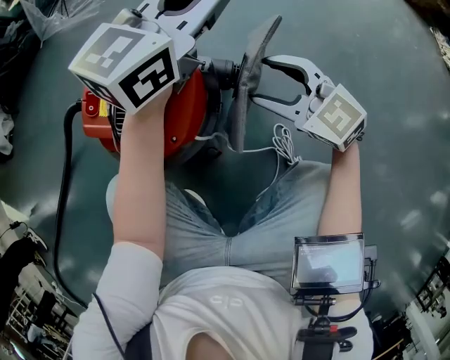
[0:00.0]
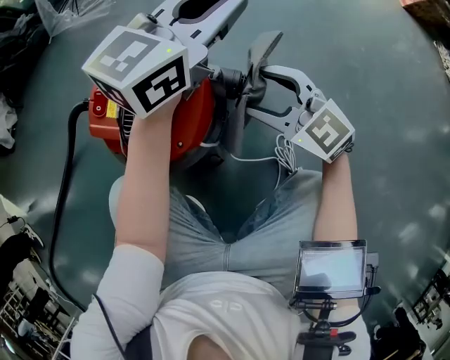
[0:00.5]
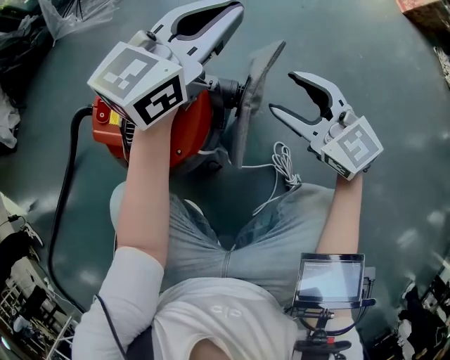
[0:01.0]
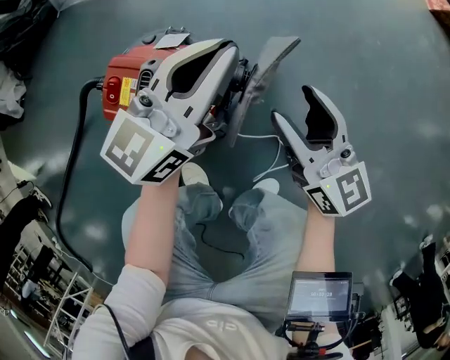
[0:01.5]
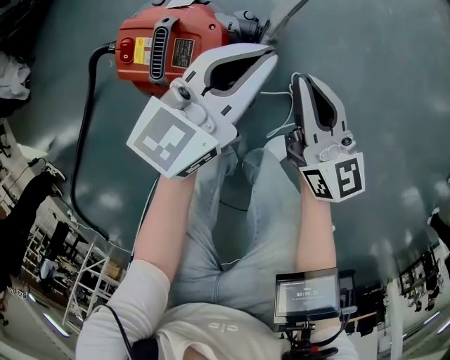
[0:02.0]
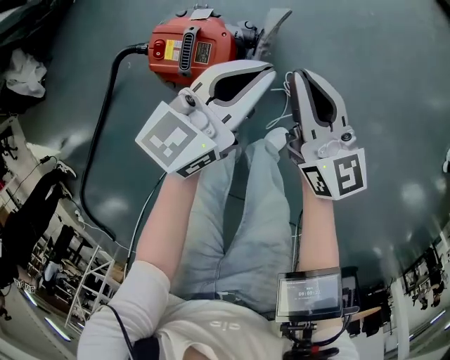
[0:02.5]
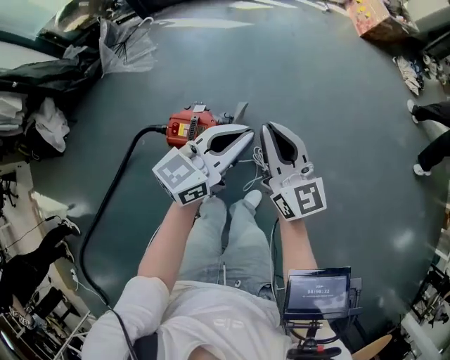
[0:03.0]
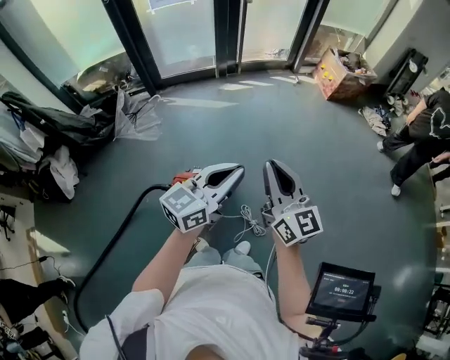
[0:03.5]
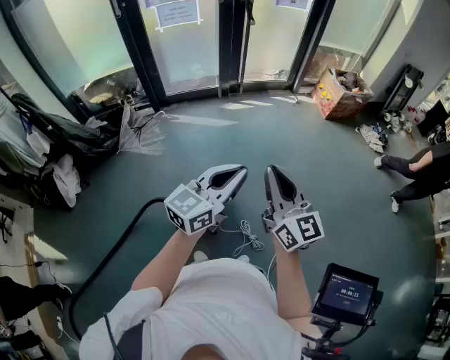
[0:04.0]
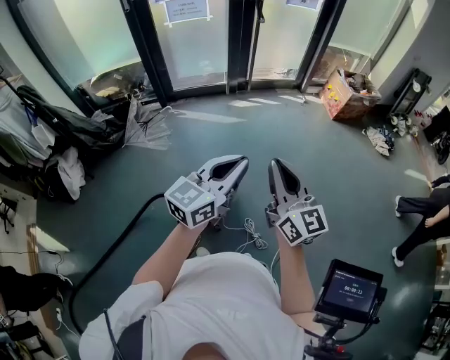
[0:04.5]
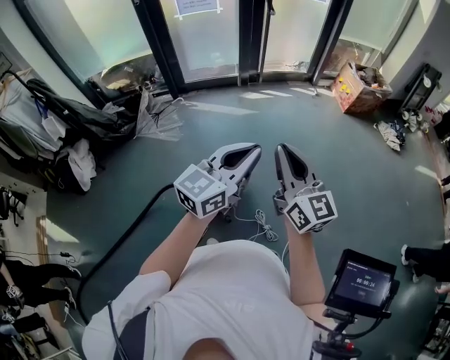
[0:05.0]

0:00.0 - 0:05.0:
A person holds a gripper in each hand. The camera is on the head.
0:00.0 - 0:02.5: The left gripper heads backward and upward, covering about 20 cm, and swivels some 20 degrees; the right gripper heads upward, covering approximately 30 cm, rotates about 50 degrees, and closes up.
0:02.5 - 0:05.0: The grippers both shift upward by roughly 50 cm. The right gripper turns by about 20 degrees, while the left gripper rotates roughly 20 degrees.

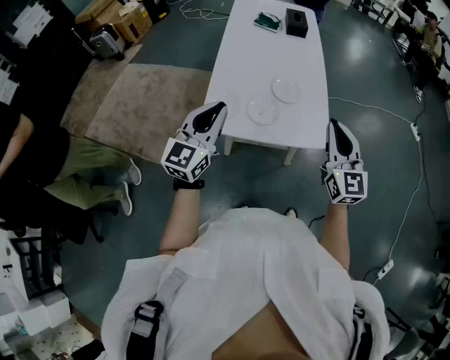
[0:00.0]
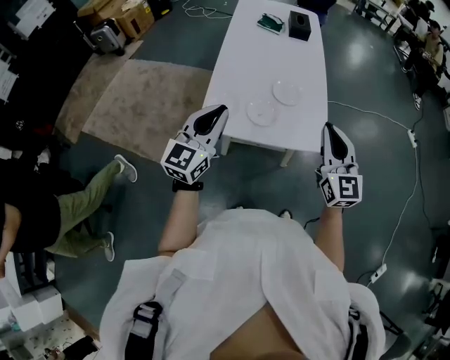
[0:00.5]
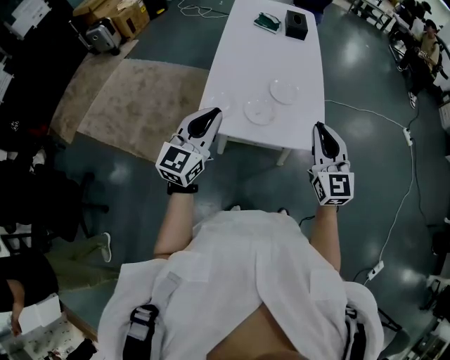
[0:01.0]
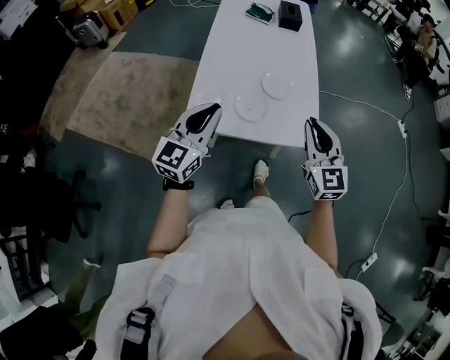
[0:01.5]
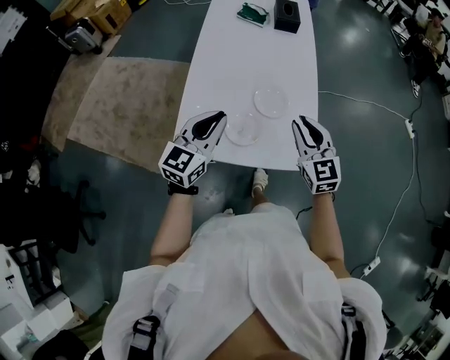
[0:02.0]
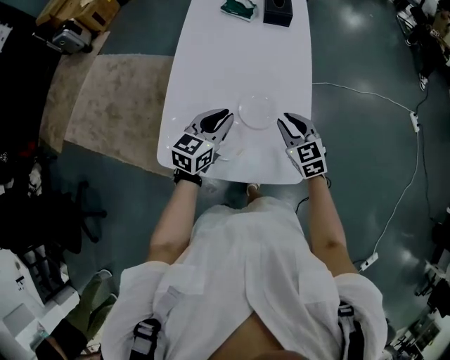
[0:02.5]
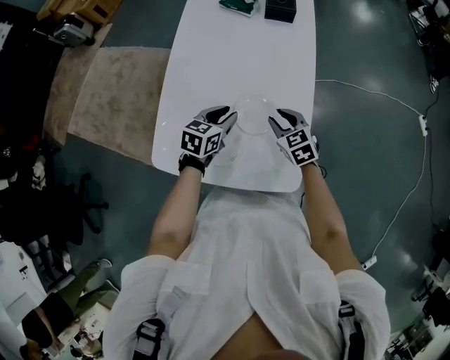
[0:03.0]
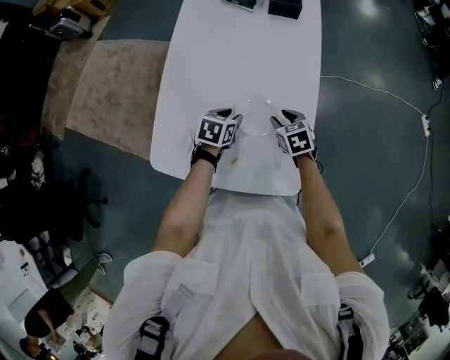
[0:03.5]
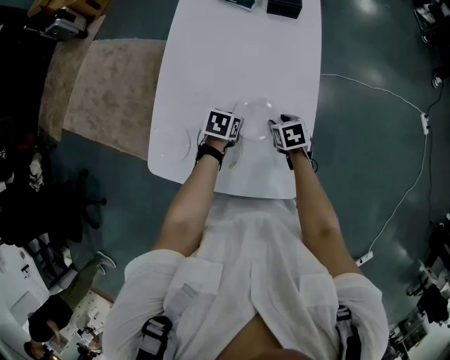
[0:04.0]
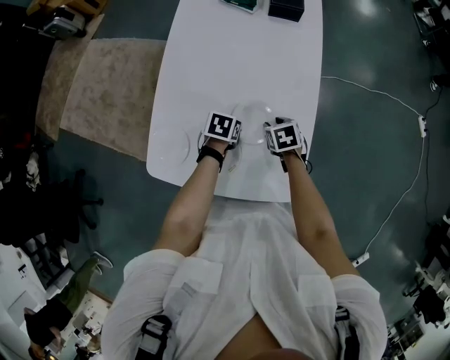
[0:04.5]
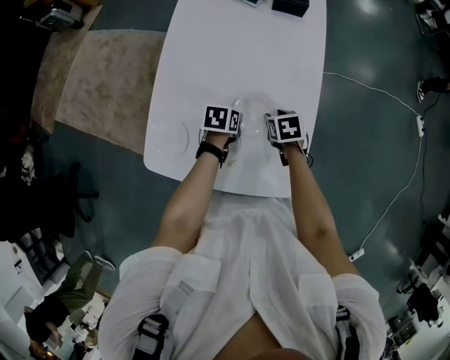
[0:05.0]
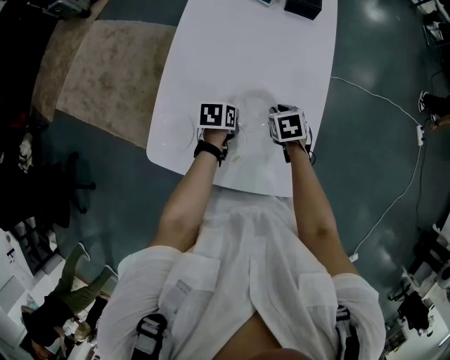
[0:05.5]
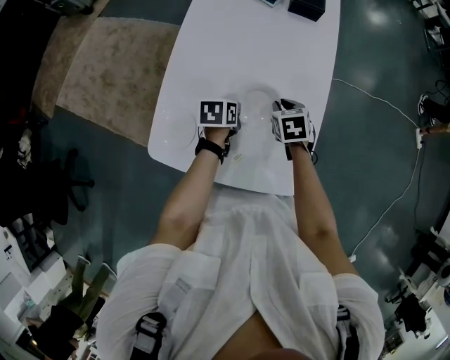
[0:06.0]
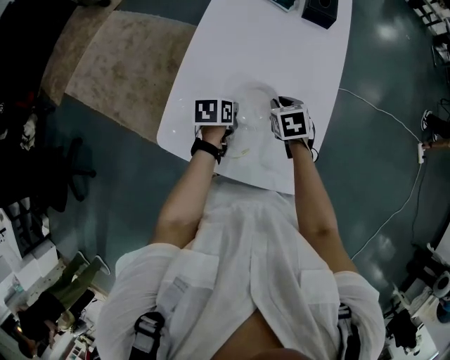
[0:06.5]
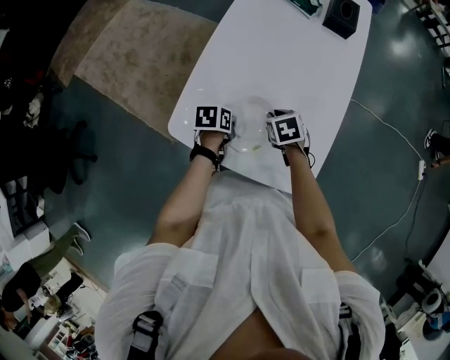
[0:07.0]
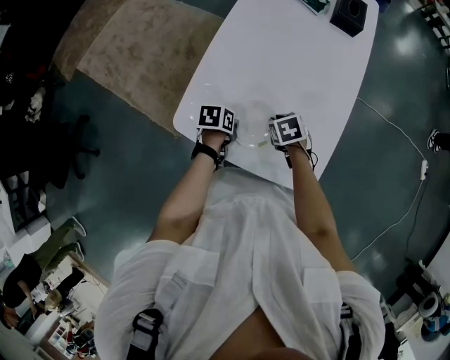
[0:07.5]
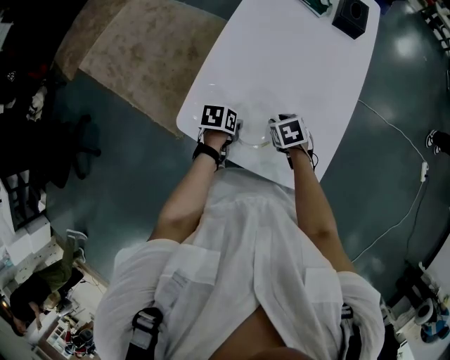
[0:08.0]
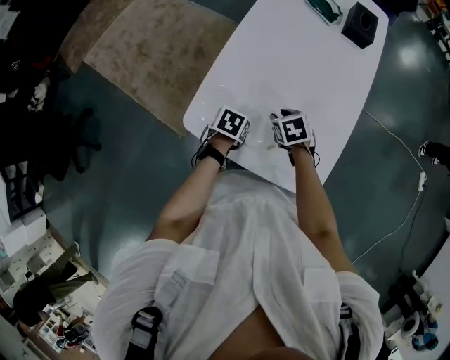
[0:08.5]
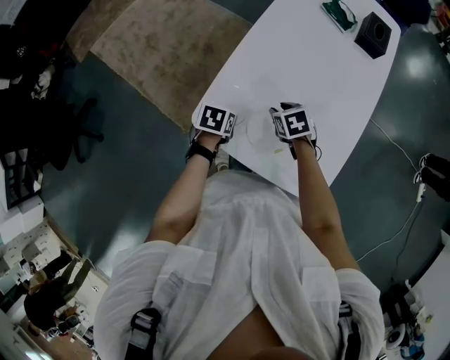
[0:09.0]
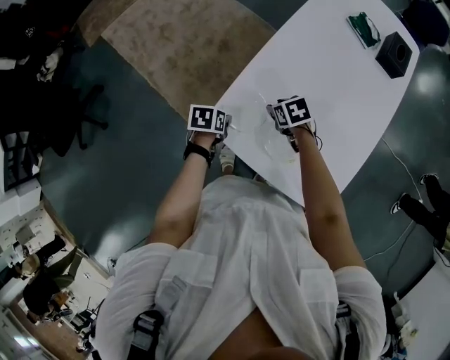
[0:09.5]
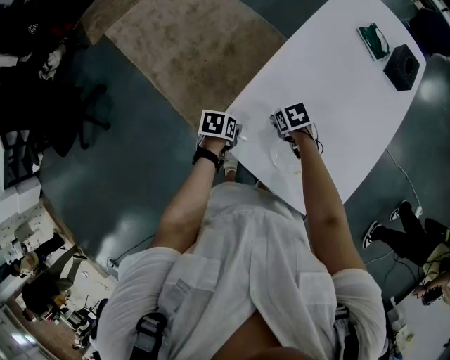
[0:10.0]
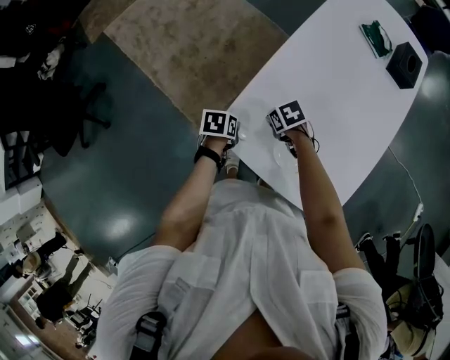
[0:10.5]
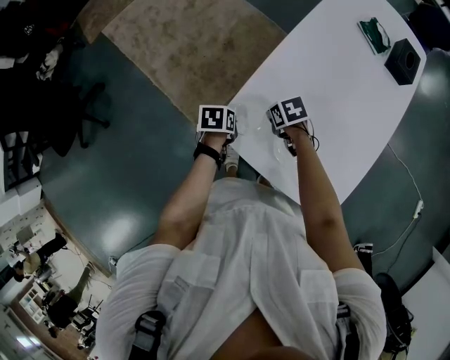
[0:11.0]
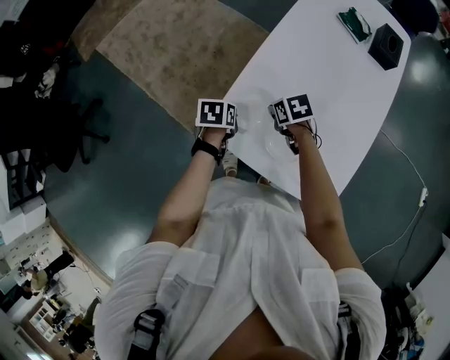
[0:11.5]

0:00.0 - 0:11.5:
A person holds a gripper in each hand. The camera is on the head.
0:00.0 - 0:02.0: Both grippers move forward and downward, roughly 20 cm. The right gripper swivels some 20 degrees.
0:02.0 - 0:04.0: Both grippers travel together downward and forward, some 35 cm. The right gripper points its fingers approximately 50 degrees further downward, and opens; the left gripper angles its fingers downward, by approximately 50 degrees, and opens.
0:04.0 - 0:06.0: The left gripper shifts by about 5 cm, swivels roughly 20 degrees, and closes. The right gripper heads upward and to the left, covering roughly 5 cm, and closes its fingers.
0:06.0 - 0:07.5: The right gripper shifts approximately 15 cm to the left and backward, and swivels about 20 degrees. Meanwhile the left gripper moves backward and to the left, about 15 cm.
0:07.5 - 0:09.5: The right gripper ends up roughly 15 cm from where it was, and opens its fingers. The left gripper moves about 15 cm, and opens its fingers.
0:09.5 - 0:11.5: The left gripper moves roughly 5 cm, and closes up; the right gripper closes its fingers.

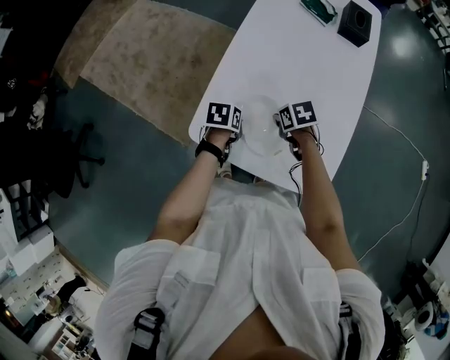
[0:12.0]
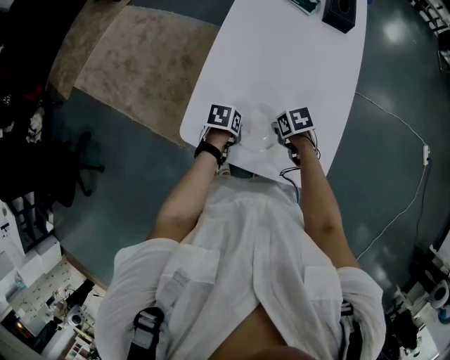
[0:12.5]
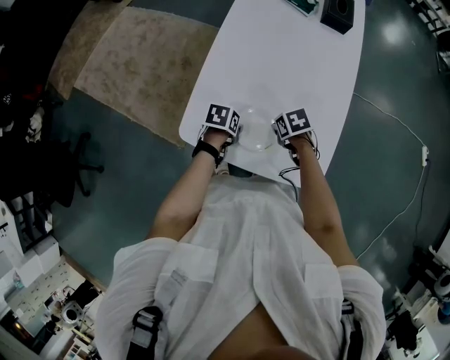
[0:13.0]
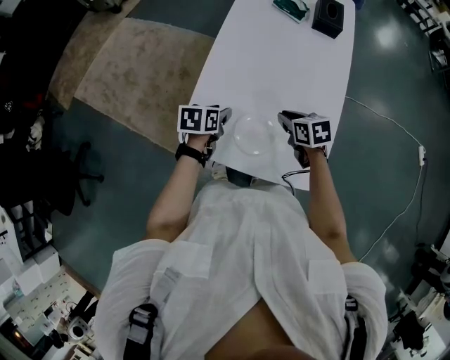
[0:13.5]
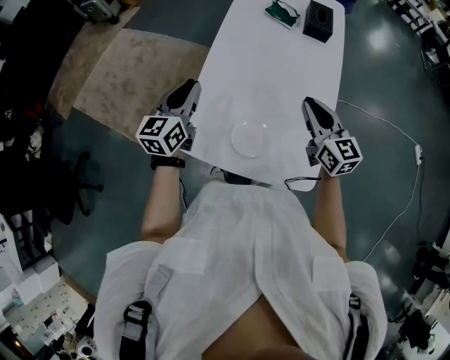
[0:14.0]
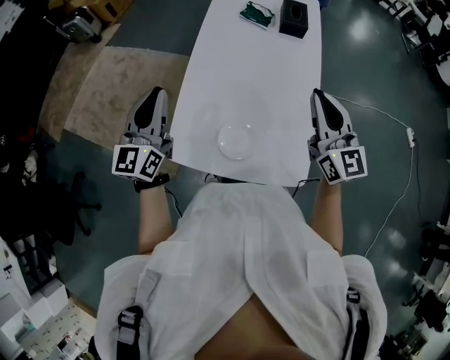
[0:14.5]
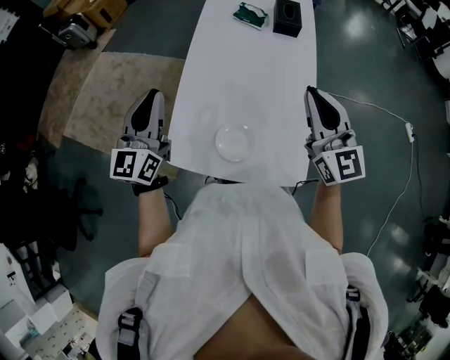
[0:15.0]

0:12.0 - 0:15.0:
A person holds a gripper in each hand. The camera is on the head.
0:12.0 - 0:13.5: The left gripper travels upward by roughly 5 cm, and opens its fingers. The right gripper moves some 10 cm, and turns by roughly 20 degrees.
0:13.5 - 0:15.0: The grippers both shift upward by some 30 cm. The left gripper points its fingers about 50 degrees further upward, and closes its fingers. The right gripper points its fingers roughly 50 degrees further upward.

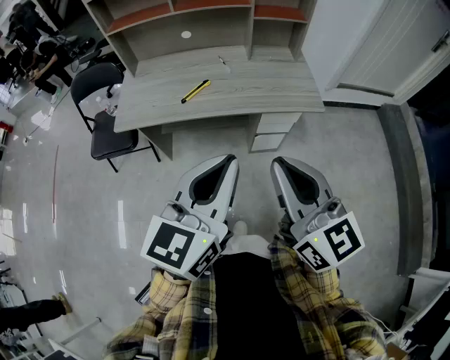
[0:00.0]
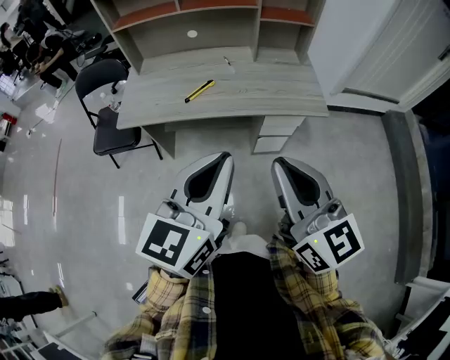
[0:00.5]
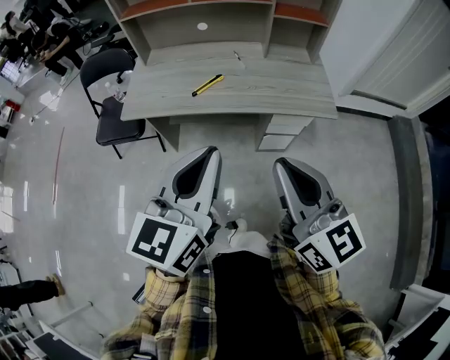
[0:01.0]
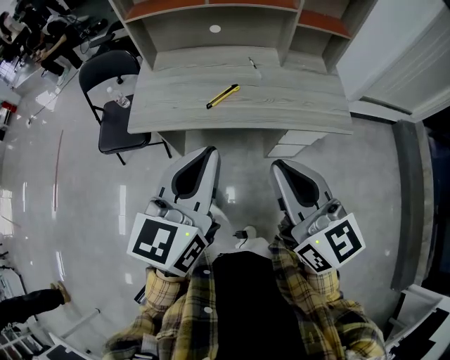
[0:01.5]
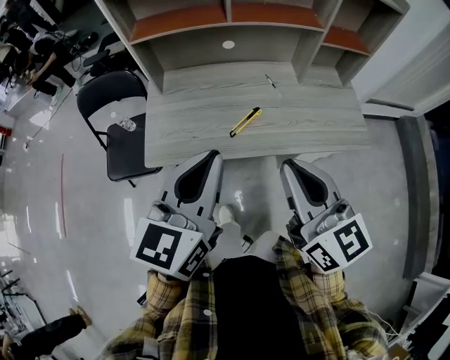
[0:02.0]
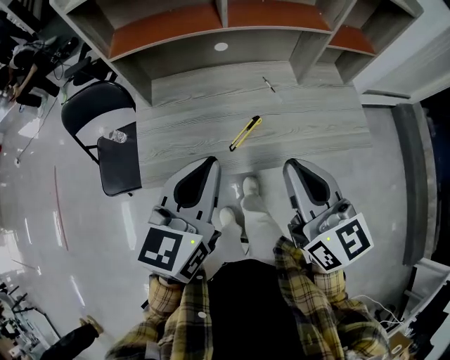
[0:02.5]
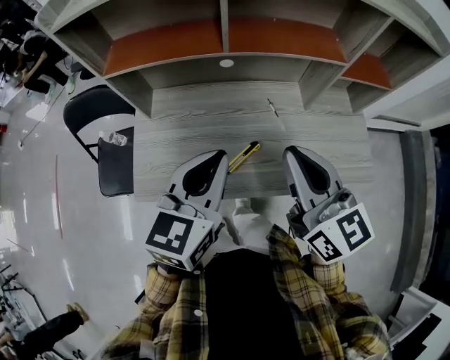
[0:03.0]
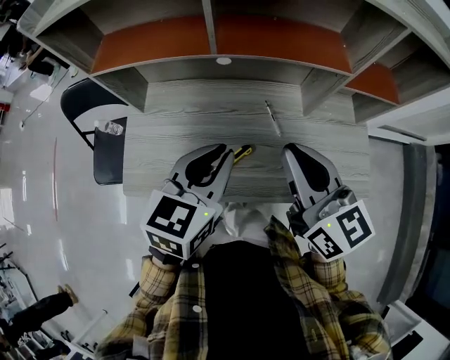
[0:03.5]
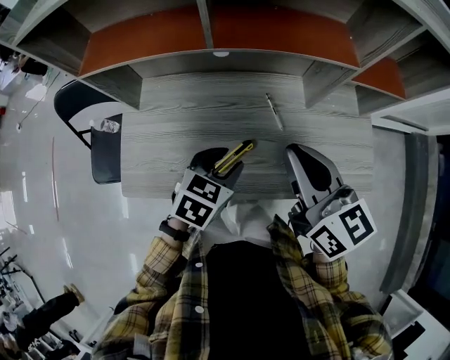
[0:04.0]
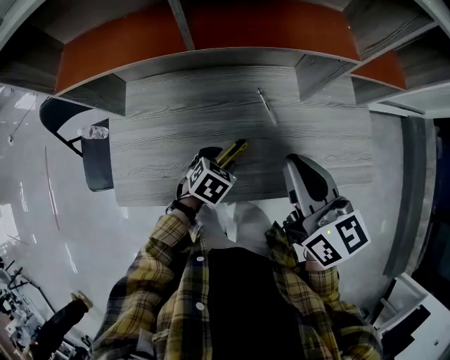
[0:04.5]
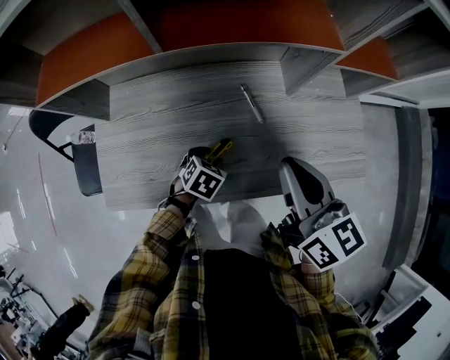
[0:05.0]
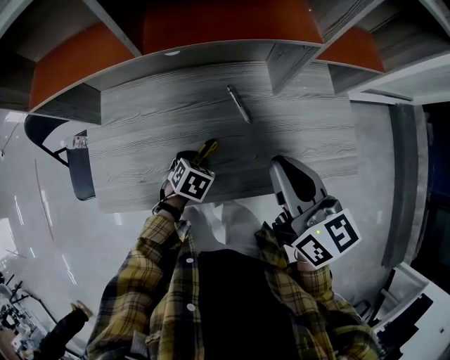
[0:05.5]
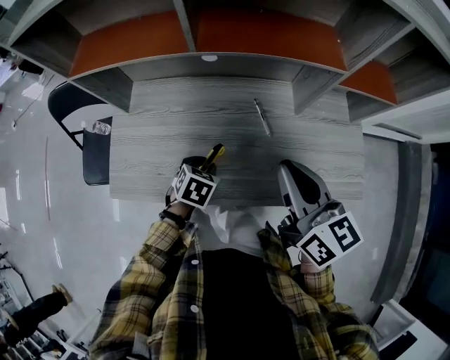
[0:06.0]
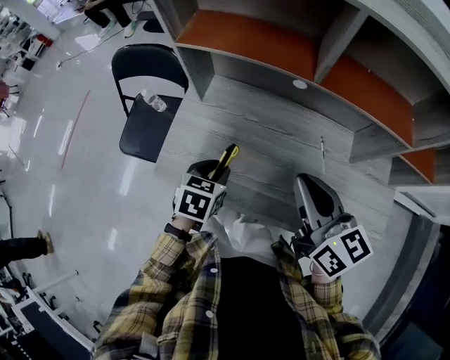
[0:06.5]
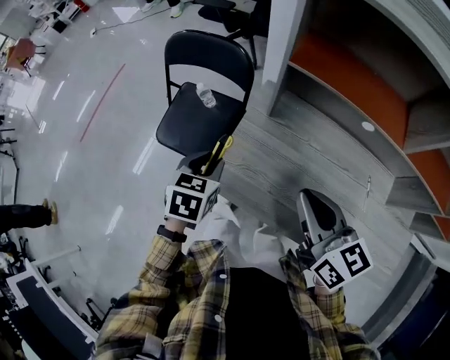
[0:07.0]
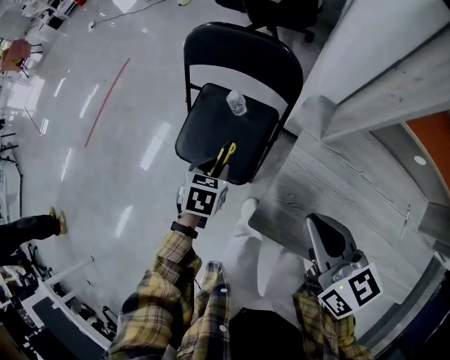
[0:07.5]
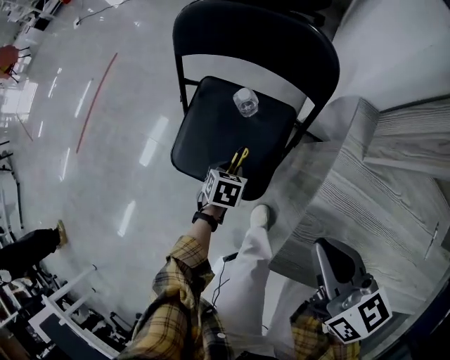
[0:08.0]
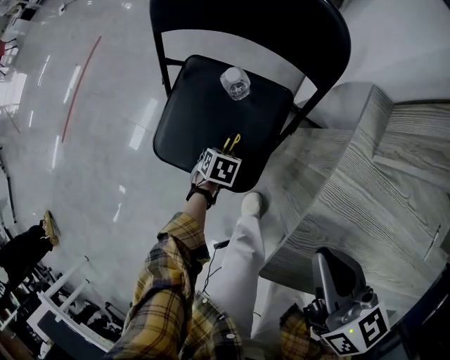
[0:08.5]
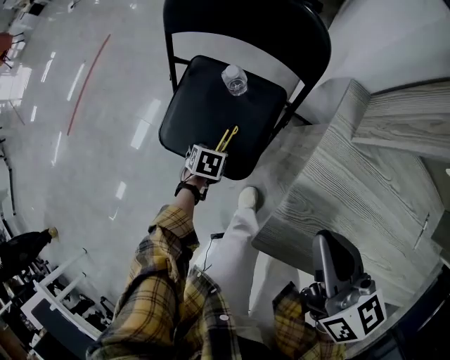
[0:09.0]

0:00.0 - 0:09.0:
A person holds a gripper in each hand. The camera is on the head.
0:00.0 - 0:02.0: Both grippers travel together forward and to the left, some 30 cm.
0:02.0 - 0:04.5: The left gripper heads downward and forward, covering some 40 cm, points its fingers roughly 50 degrees further downward, and opens up. Meanwhile the right gripper travels forward and downward by about 30 cm.
0:04.5 - 0:07.0: The left gripper shifts by roughly 40 cm, and swivels some 50 degrees, while the right gripper changes place by some 30 cm, and swivels approximately 30 degrees.
0:07.0 - 0:09.0: The right gripper moves some 25 cm. The left gripper travels downward by approximately 40 cm, swivels about 30 degrees, and opens its fingers.
